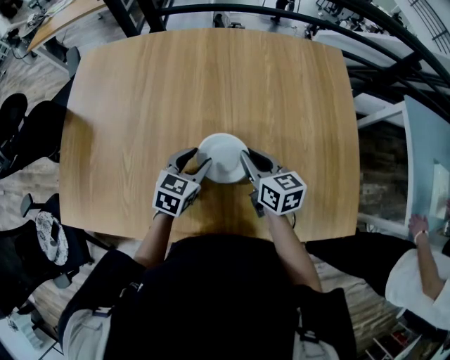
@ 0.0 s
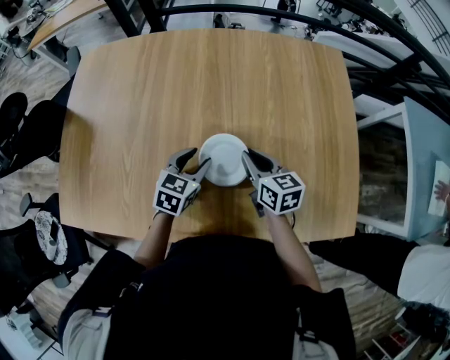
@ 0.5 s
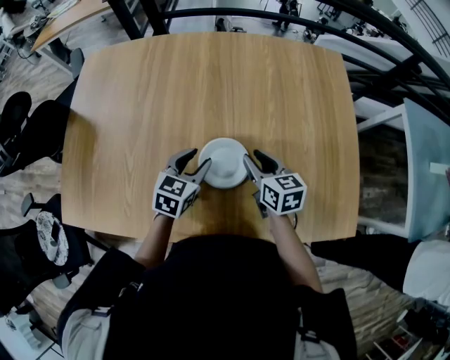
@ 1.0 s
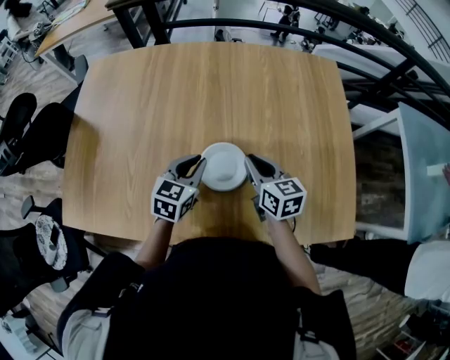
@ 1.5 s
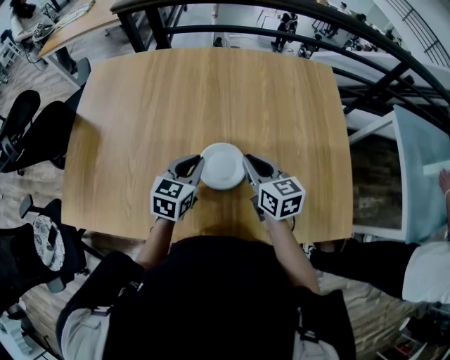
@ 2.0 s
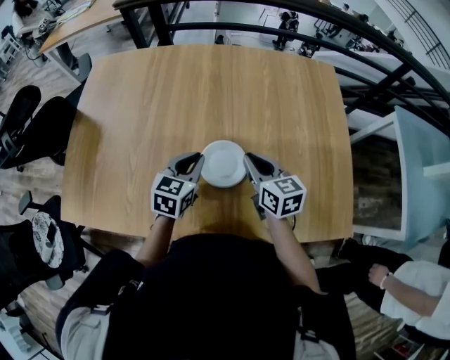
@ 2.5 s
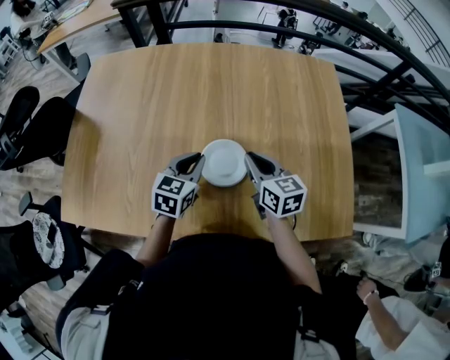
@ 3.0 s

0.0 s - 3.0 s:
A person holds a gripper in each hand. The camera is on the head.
0.0 s - 1.5 s: The right gripper opens, then closes once more, while the left gripper closes its fingers.
1.5 s - 3.0 s: The grippers make only small movements.

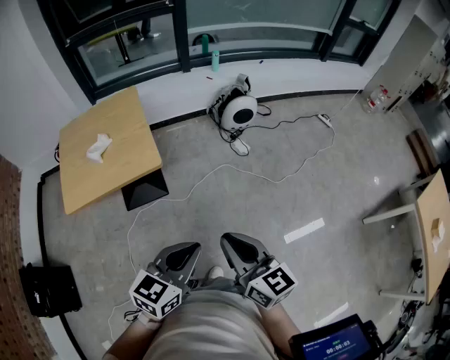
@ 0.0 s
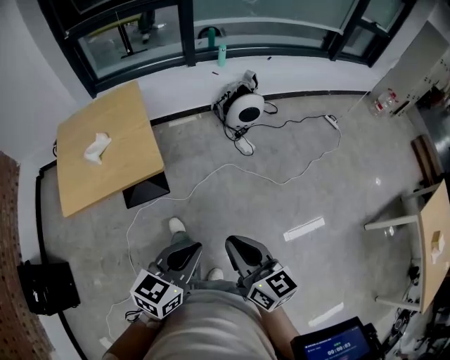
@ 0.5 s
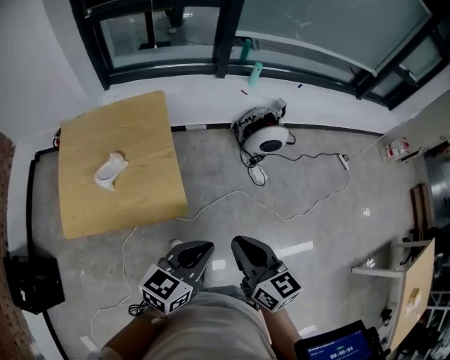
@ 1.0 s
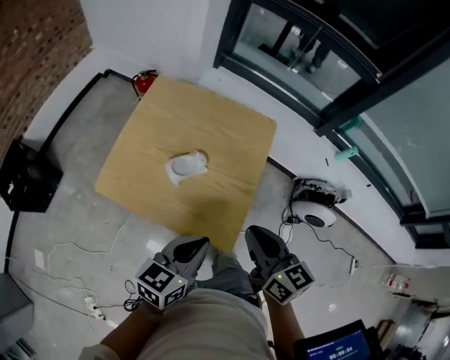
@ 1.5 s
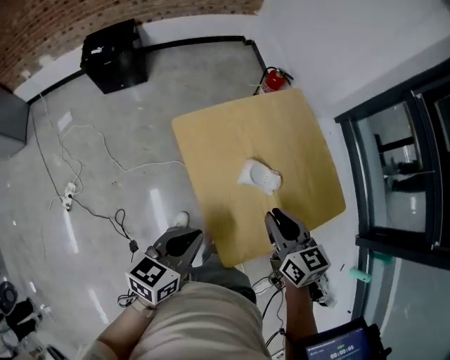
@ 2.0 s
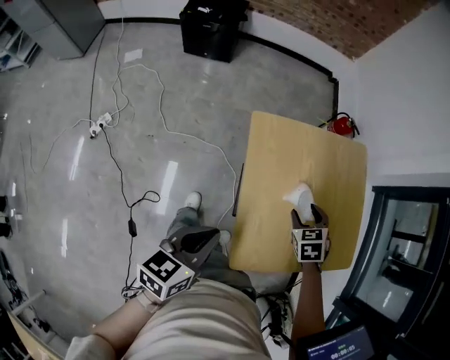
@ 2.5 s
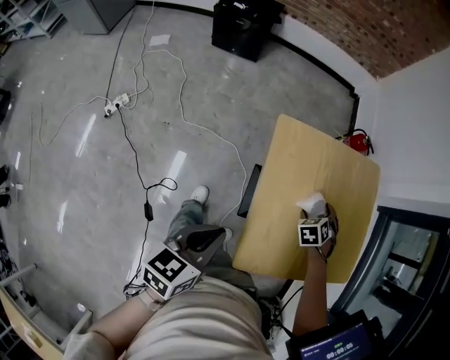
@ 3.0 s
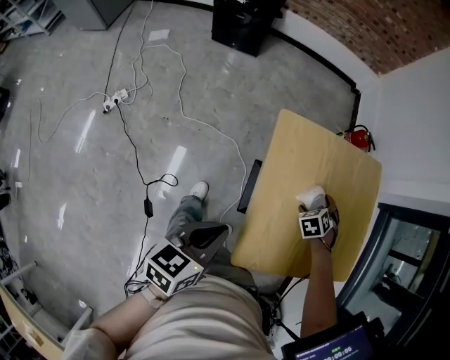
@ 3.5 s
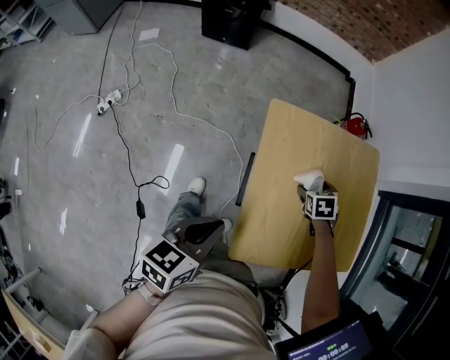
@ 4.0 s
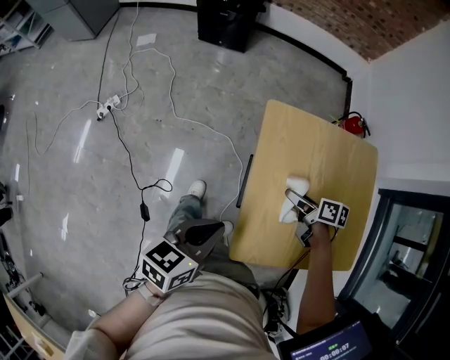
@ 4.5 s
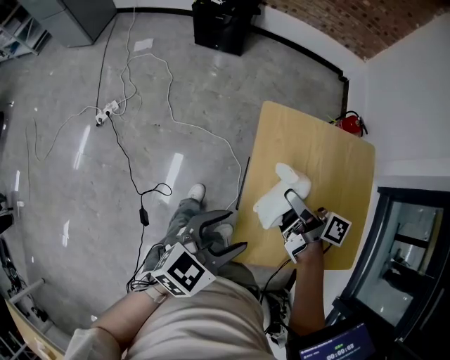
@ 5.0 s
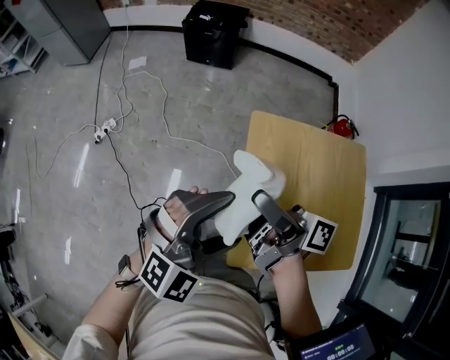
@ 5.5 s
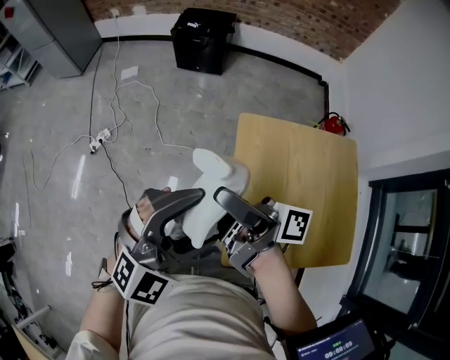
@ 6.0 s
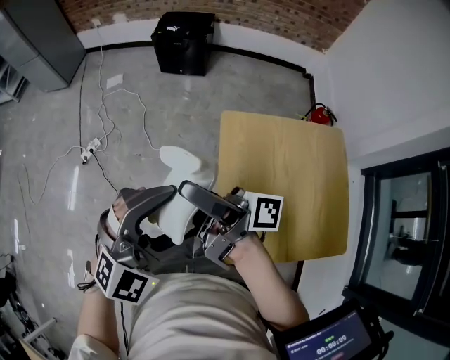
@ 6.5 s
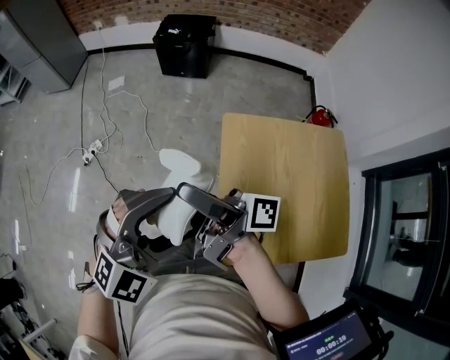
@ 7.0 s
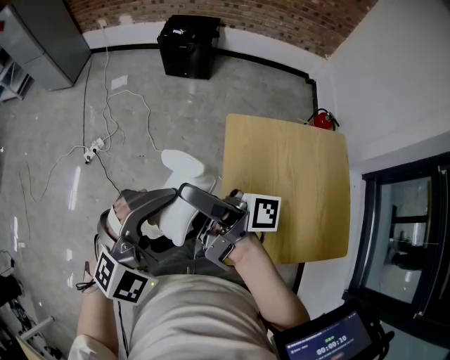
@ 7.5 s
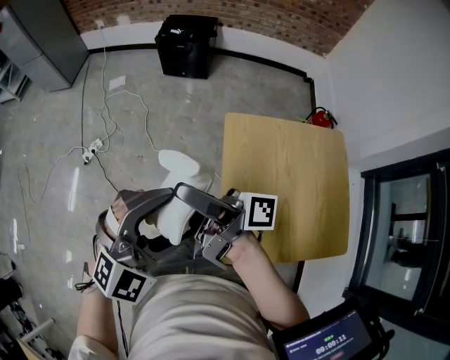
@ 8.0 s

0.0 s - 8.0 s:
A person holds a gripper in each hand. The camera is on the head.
0.0 s - 2.0 s: Both grippers are carried roughly 60 cm. The right gripper turns by roughly 90 degrees; the left gripper turns by approximately 90 degrees.
2.0 s - 4.0 s: The right gripper moves downward and forward, some 25 cm, angles its fingers downward, by about 40 degrees, and opens; the left gripper is displaced to the left and backward by approximately 10 cm, and rotates some 30 degrees.
4.0 s - 6.0 s: The left gripper shifts some 15 cm upward, rotates around the line of its fingers by about 80 degrees, clockwise from behind, and opens up. The right gripper heads upward, covering about 35 cm, and points its fingers roughly 90 degrees further upward.
6.0 s - 8.0 s: The grippers stay close to where they were, moving slightly.

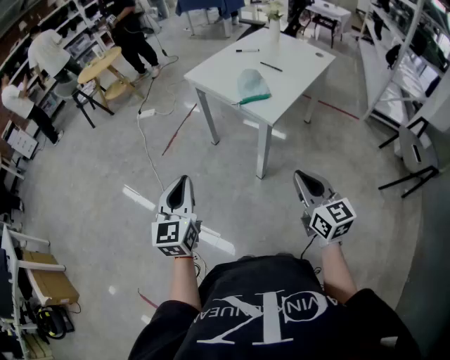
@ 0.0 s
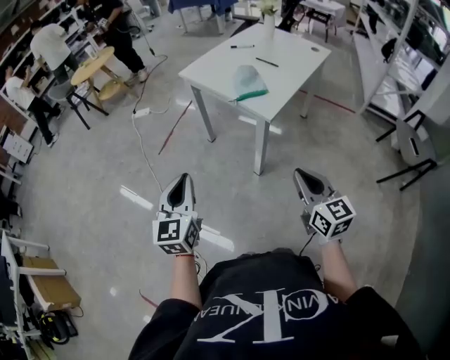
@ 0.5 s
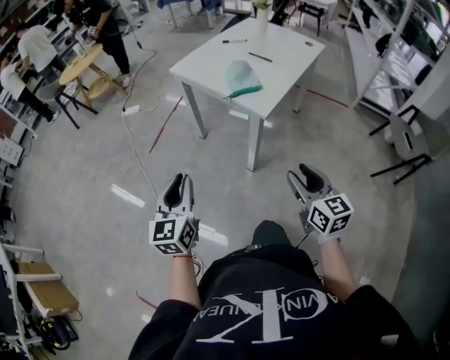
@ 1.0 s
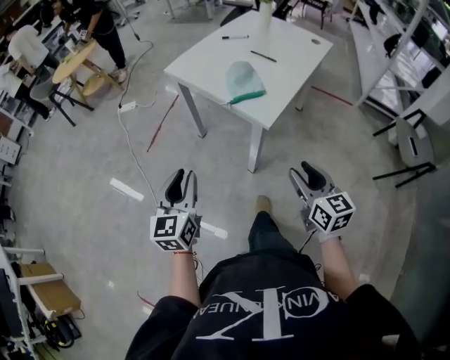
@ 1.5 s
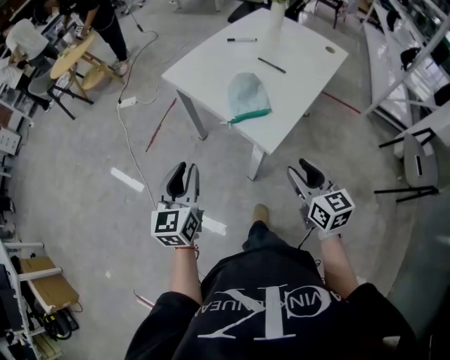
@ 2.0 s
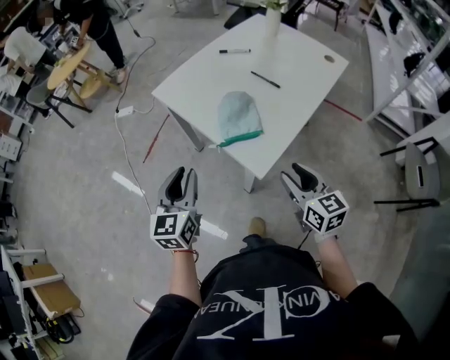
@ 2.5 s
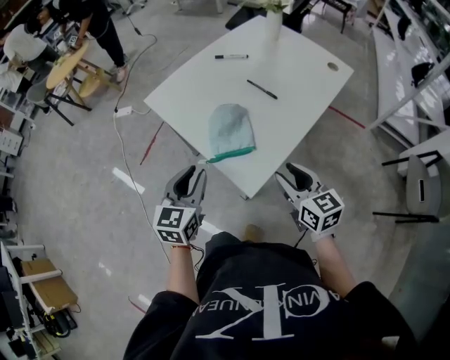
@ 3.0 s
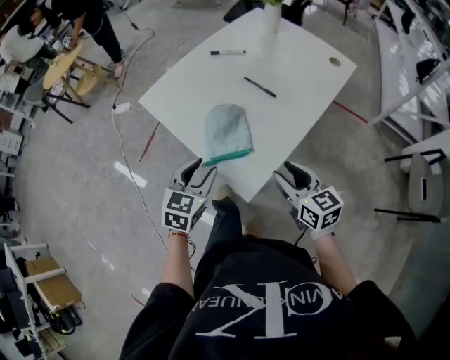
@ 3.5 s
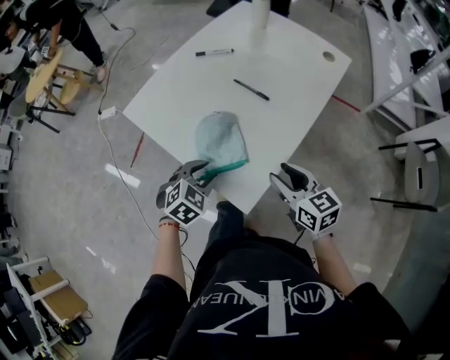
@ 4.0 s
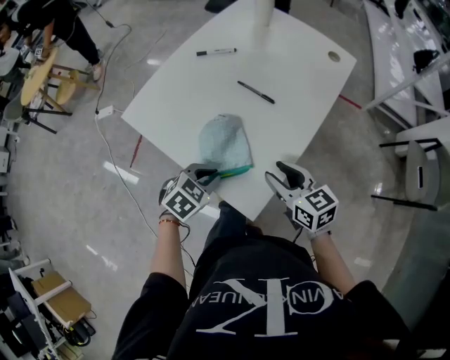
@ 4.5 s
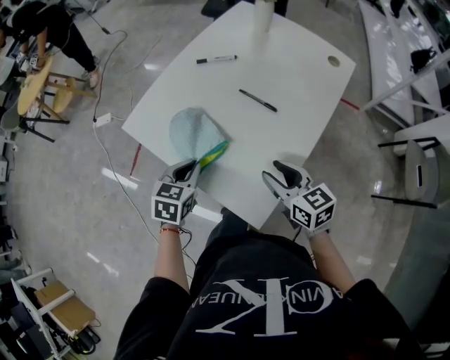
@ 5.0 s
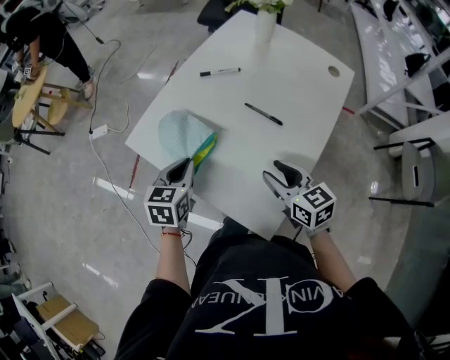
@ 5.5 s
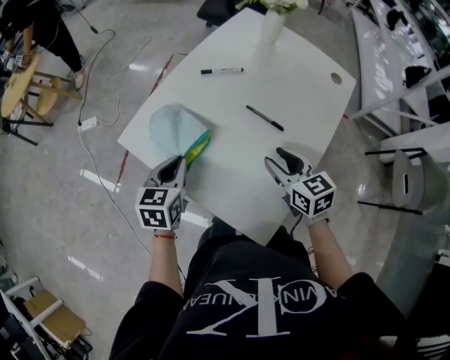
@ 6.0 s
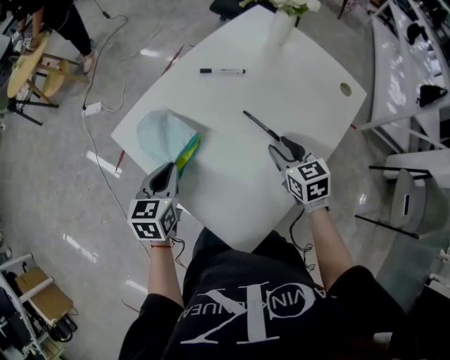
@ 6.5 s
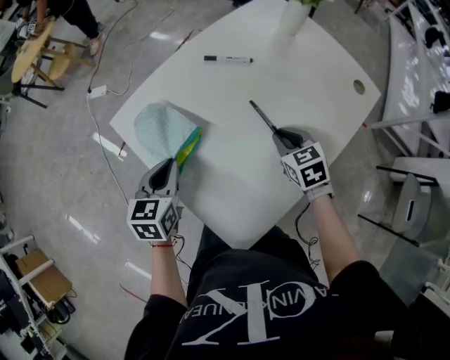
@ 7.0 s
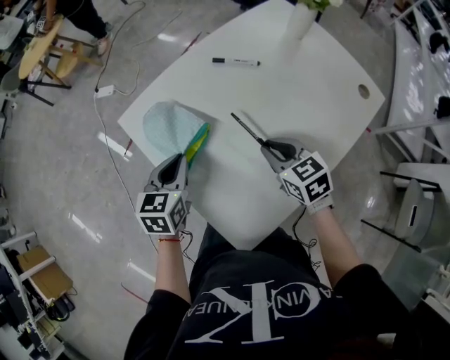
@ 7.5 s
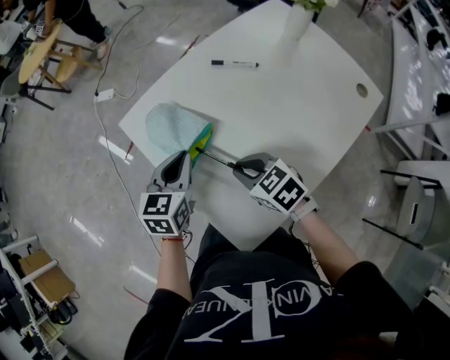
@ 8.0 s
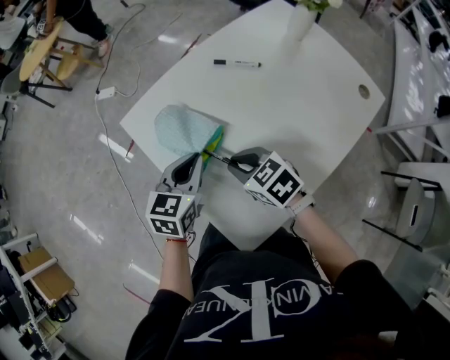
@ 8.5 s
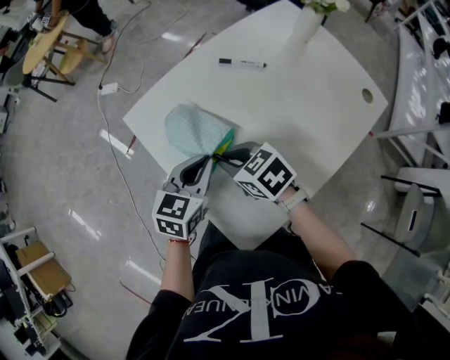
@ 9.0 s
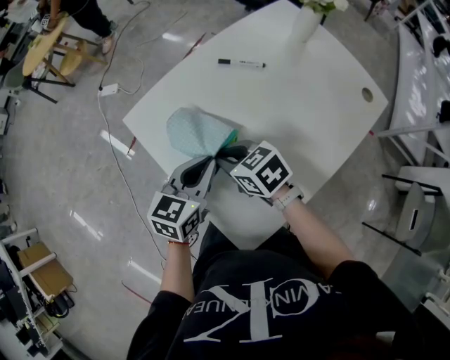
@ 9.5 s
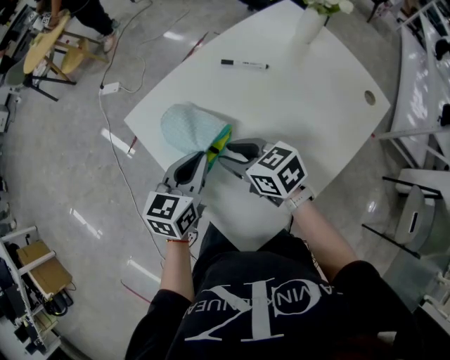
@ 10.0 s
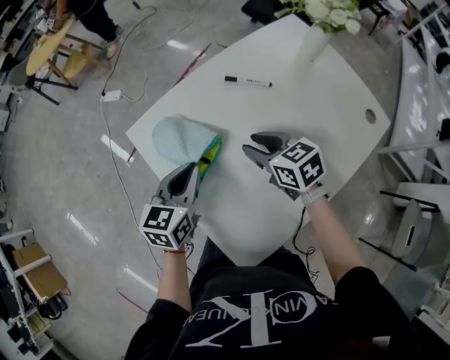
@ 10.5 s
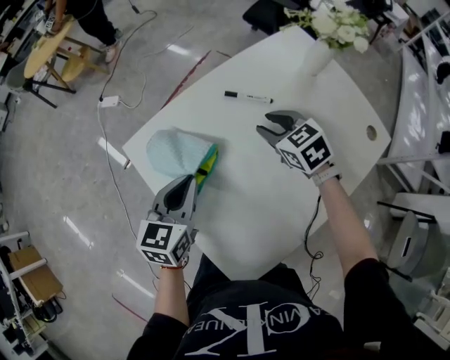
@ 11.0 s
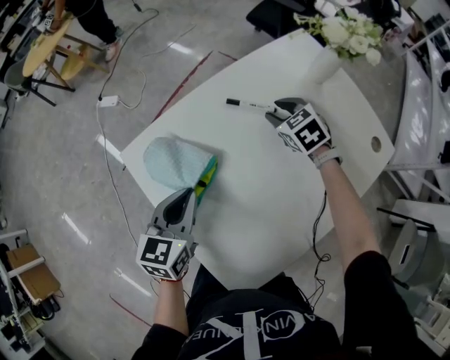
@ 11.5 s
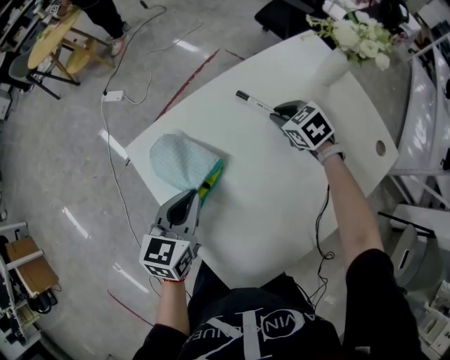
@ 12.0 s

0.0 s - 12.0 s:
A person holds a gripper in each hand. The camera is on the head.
0.0 s - 2.0 s: Both grippers travel together forward, some 25 cm. The left gripper opens; the right gripper opens.
2.0 s - 4.0 s: The left gripper goes approximately 30 cm forward, to the right and downward, and tilts its fingers some 40 degrees downward, while the right gripper shifts about 20 cm forward.
4.0 s - 6.0 s: The right gripper goes some 15 cm forward; the left gripper is displaced forward and to the left by some 20 cm, swivels roughly 50 degrees, and closes.
6.0 s - 8.0 s: The right gripper ends up roughly 10 cm from where it was, changes its angle by approximately 40 degrees, and closes up.
8.0 s - 10.0 s: The right gripper moves forward, some 5 cm.
10.0 s - 12.0 s: The right gripper goes about 30 cm forward and to the right, and rotates about 30 degrees, while the left gripper changes place by some 5 cm.

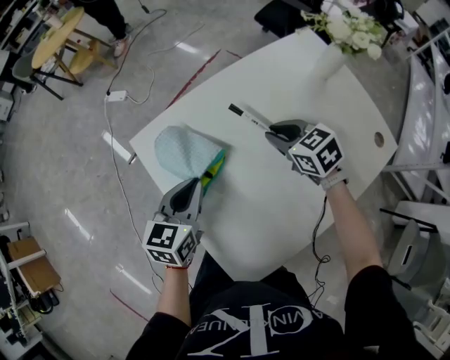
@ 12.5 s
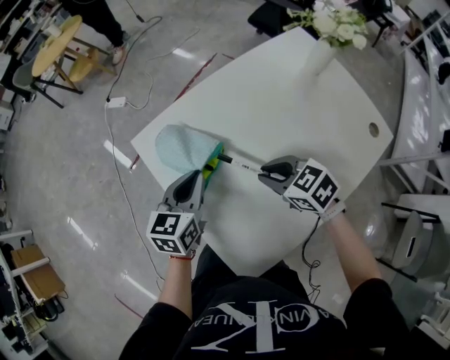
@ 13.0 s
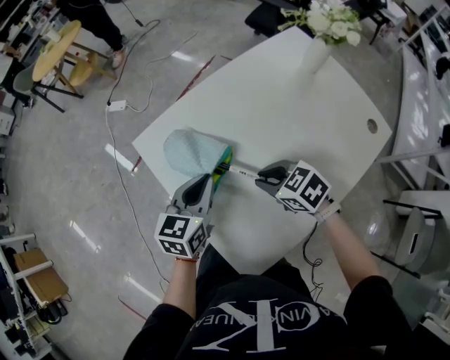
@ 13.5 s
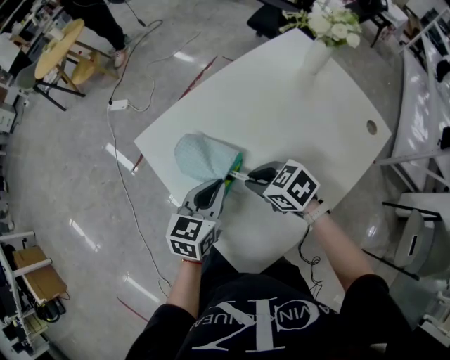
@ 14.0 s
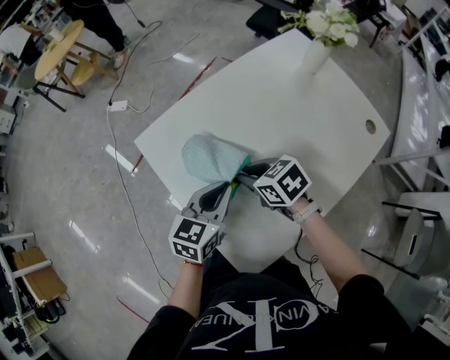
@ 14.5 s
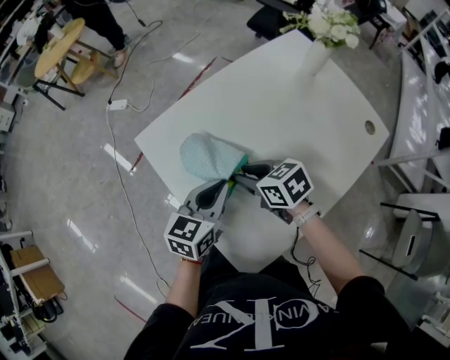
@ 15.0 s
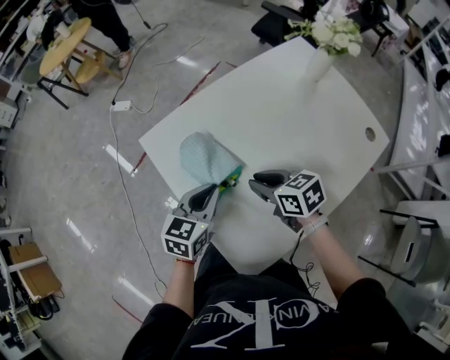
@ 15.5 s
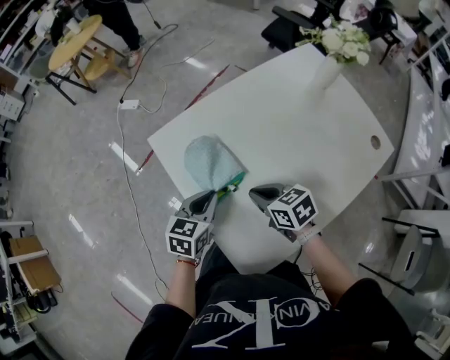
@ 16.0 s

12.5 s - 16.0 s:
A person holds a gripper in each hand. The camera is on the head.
12.5 s - 14.5 s: The right gripper goes about 15 cm to the left and backward, while the left gripper moves backward and to the right, roughly 10 cm.
14.5 s - 16.0 s: The left gripper moves to the left, some 5 cm.
